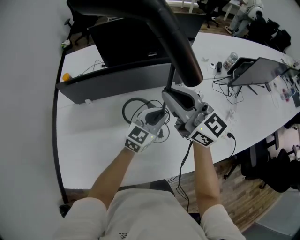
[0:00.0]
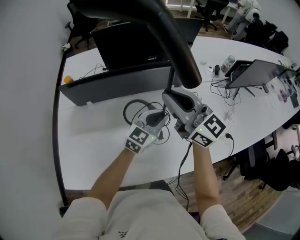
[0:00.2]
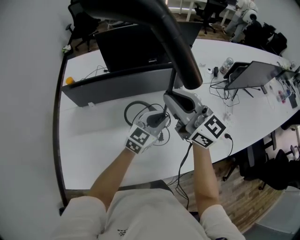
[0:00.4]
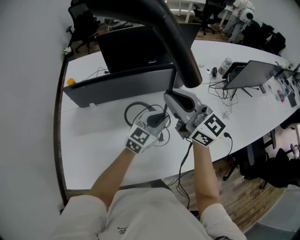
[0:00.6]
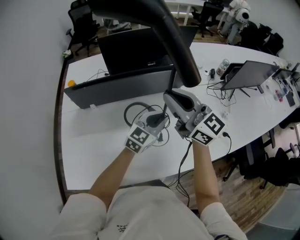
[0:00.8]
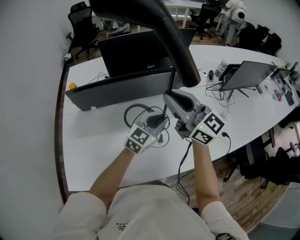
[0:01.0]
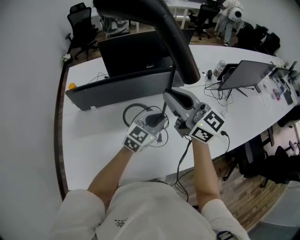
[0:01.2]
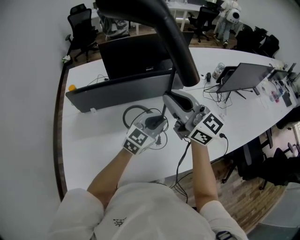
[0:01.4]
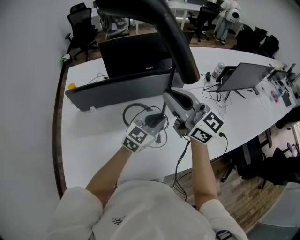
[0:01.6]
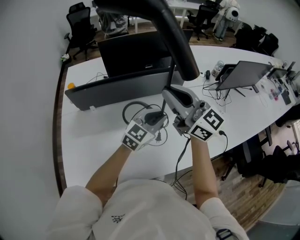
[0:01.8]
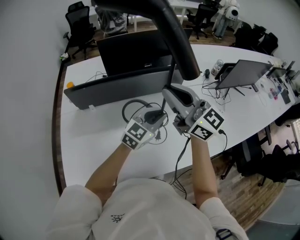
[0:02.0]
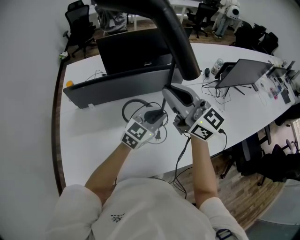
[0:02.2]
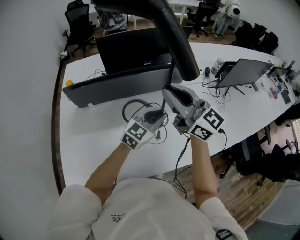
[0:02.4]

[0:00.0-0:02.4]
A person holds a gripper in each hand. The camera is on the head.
0:00.0 to 0:01.2: Both grippers move upward and backward, about 10 cm.
0:01.2 to 0:02.4: The grippers stay close to where they were, moving slightly.

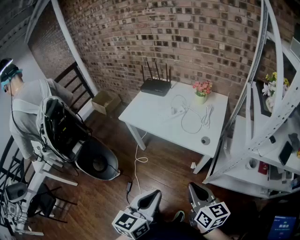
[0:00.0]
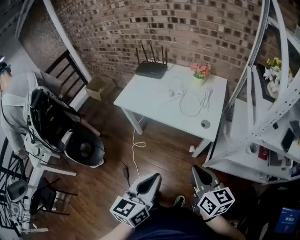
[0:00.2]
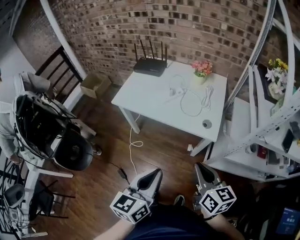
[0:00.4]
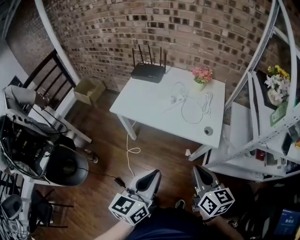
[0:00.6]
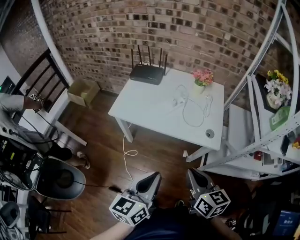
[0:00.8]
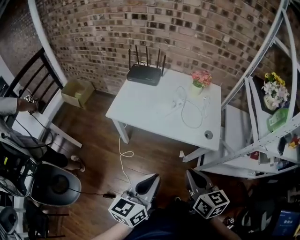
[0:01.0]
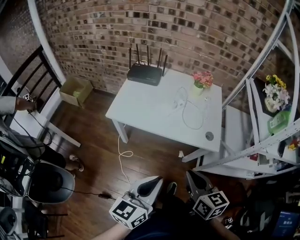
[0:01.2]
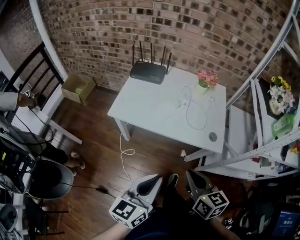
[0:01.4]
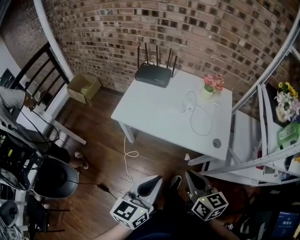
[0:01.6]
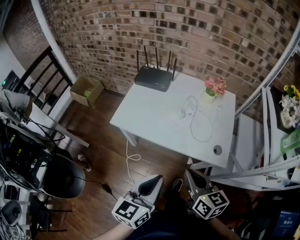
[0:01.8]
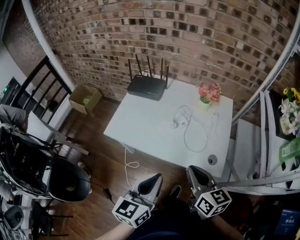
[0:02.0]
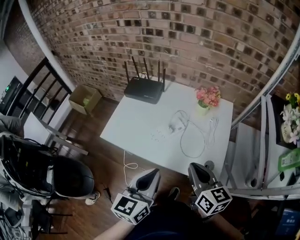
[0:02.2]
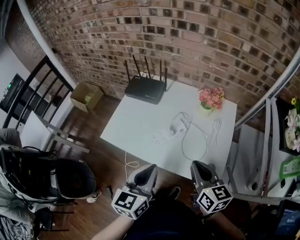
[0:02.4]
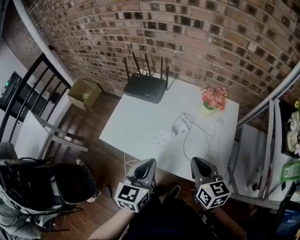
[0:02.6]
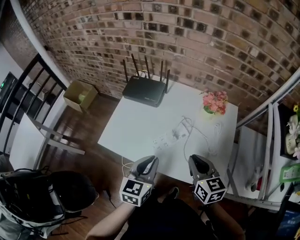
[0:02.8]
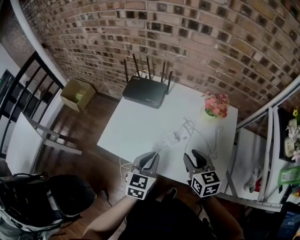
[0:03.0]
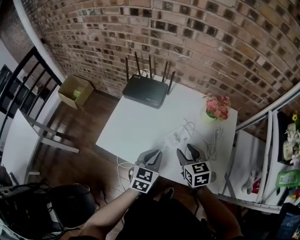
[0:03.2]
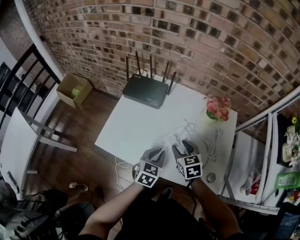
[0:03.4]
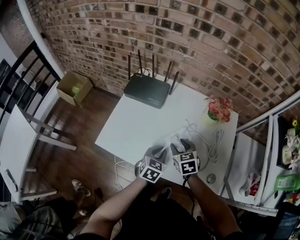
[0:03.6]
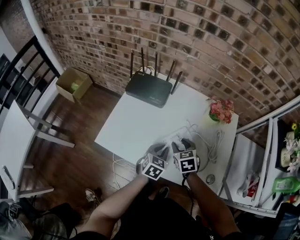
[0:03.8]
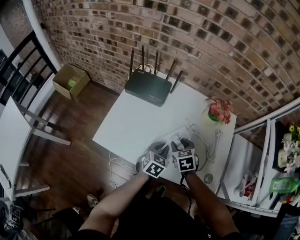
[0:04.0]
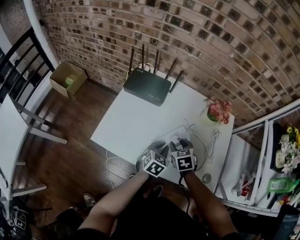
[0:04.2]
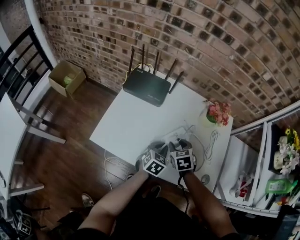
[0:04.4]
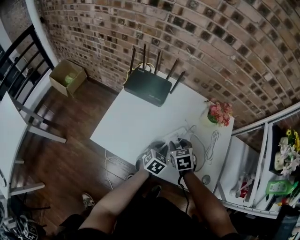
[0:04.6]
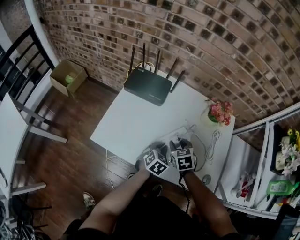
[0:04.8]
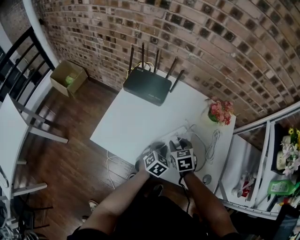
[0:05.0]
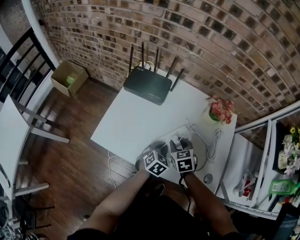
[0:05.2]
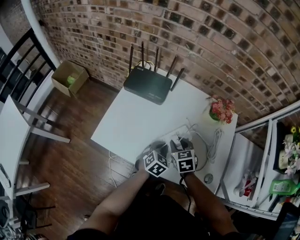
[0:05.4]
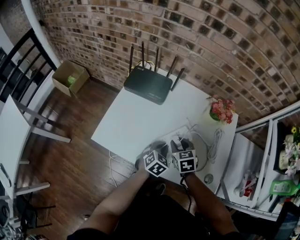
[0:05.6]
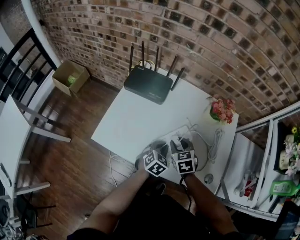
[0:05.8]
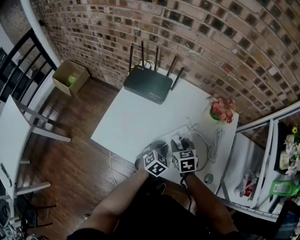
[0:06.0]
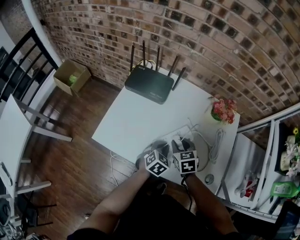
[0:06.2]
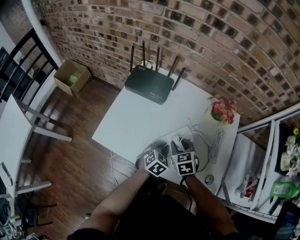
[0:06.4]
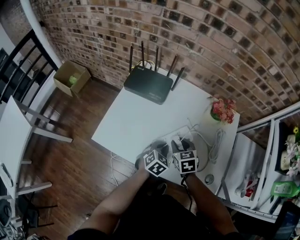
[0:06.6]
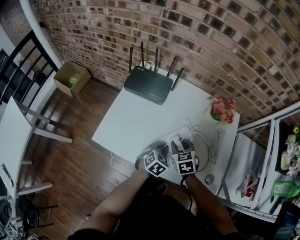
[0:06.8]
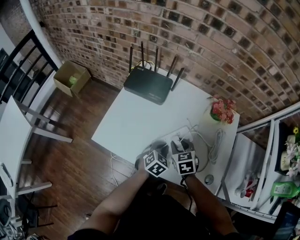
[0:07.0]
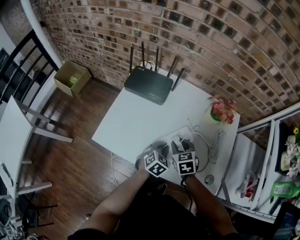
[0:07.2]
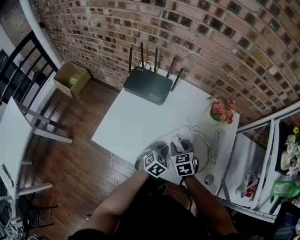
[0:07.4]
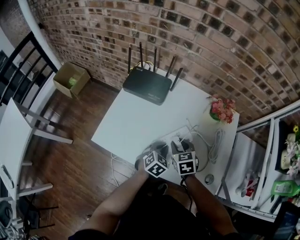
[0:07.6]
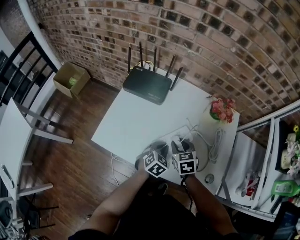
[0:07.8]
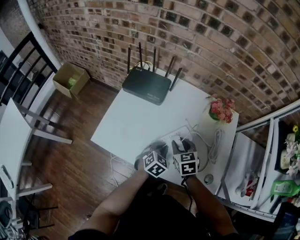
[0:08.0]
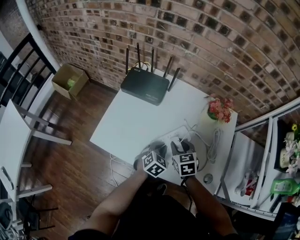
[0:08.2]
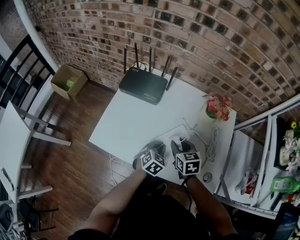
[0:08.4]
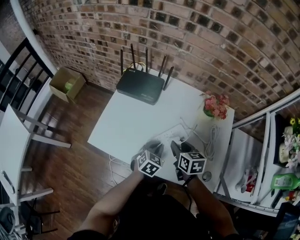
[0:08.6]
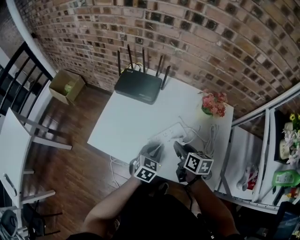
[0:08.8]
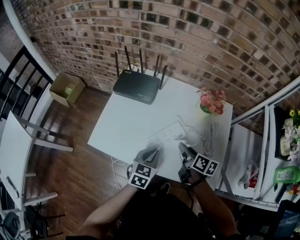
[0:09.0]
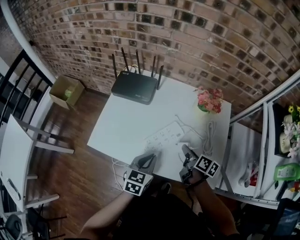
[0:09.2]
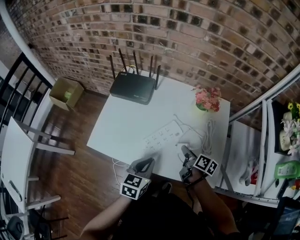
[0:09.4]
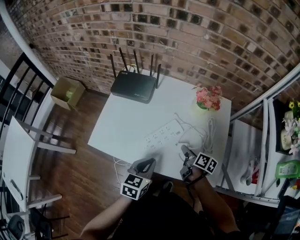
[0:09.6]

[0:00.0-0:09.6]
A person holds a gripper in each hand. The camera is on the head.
0:00.0 to 0:01.6: The right gripper shifts about 25 cm to the left and forward. Meanwhile the left gripper travels forward and to the left by about 25 cm.
0:01.6 to 0:03.2: The right gripper shifts approximately 30 cm forward, turns by some 20 degrees, and opens its fingers. The left gripper heads forward and downward, covering about 35 cm, and changes its angle by approximately 30 degrees.
0:03.2 to 0:04.8: The right gripper is displaced downward by roughly 10 cm, while the left gripper goes about 10 cm downward and forward.
0:04.8 to 0:08.0: The grippers stay close to where they were, moving slightly.
0:08.0 to 0:09.6: The right gripper is displaced to the right by roughly 10 cm, and rolls clockwise, seen from behind, by about 60 degrees, while the left gripper travels upward and backward by approximately 15 cm, and swivels approximately 30 degrees.

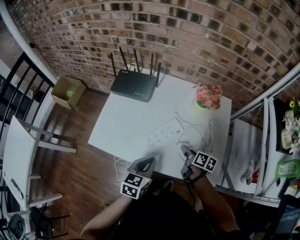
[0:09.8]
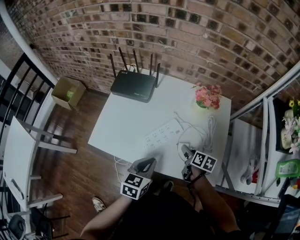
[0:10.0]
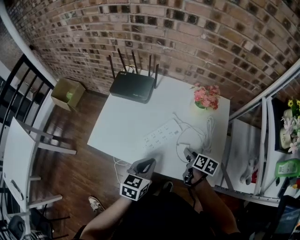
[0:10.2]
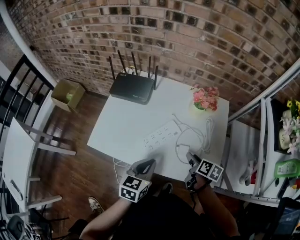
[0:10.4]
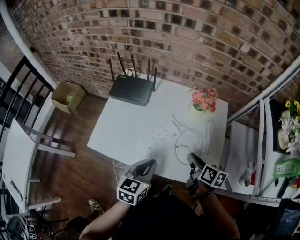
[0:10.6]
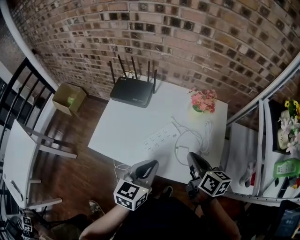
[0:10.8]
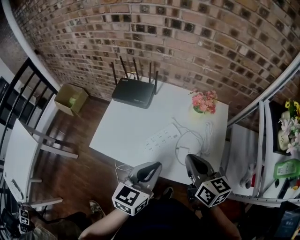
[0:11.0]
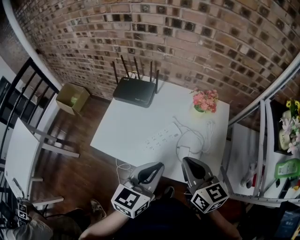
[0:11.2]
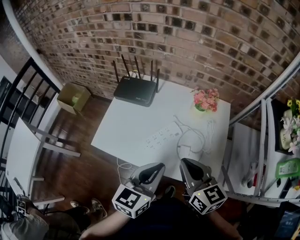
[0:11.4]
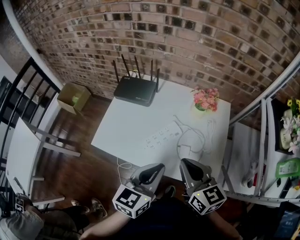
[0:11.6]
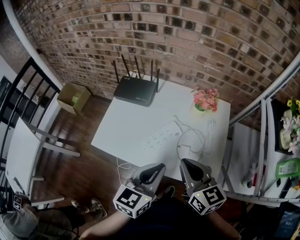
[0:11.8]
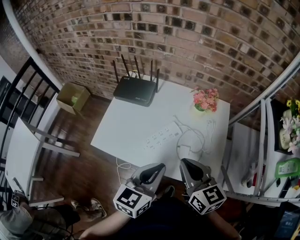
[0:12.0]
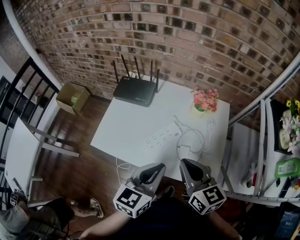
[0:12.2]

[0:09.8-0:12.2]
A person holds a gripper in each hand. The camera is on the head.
0:09.8 to 0:11.0: The right gripper travels upward by some 25 cm, swivels roughly 40 degrees, and closes; the left gripper travels upward by approximately 15 cm.
0:11.0 to 0:12.2: The grippers stay close to where they were, moving slightly.

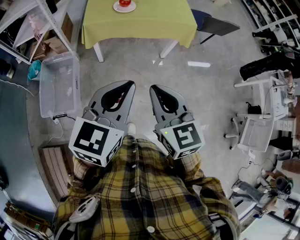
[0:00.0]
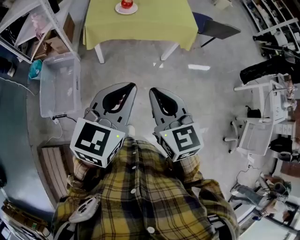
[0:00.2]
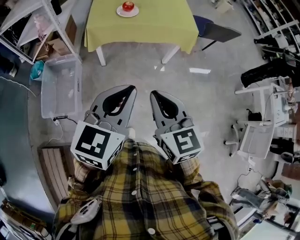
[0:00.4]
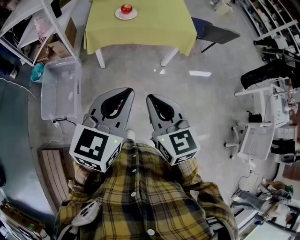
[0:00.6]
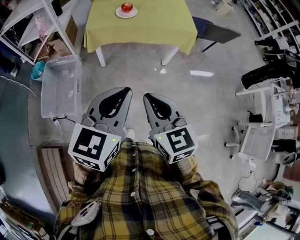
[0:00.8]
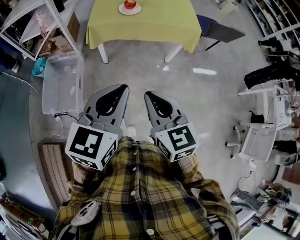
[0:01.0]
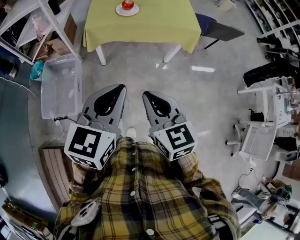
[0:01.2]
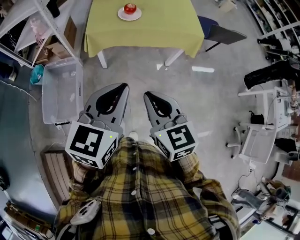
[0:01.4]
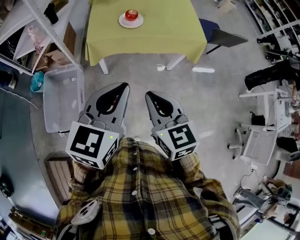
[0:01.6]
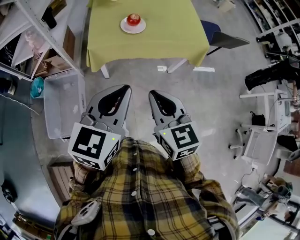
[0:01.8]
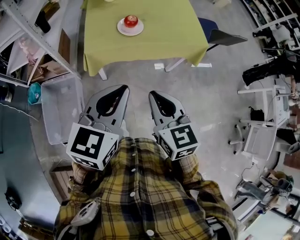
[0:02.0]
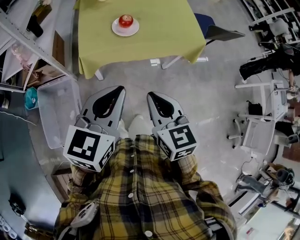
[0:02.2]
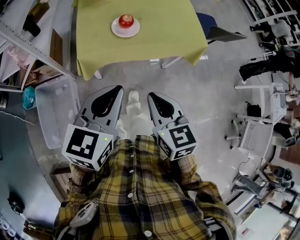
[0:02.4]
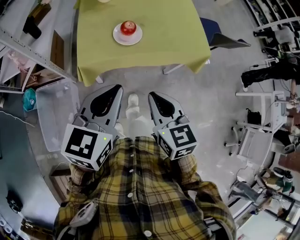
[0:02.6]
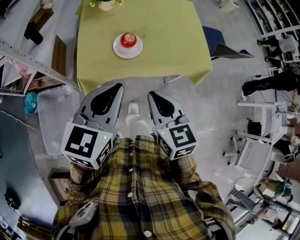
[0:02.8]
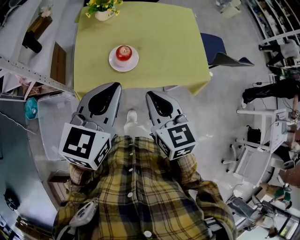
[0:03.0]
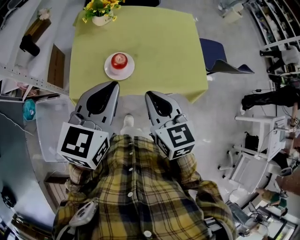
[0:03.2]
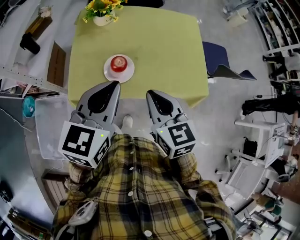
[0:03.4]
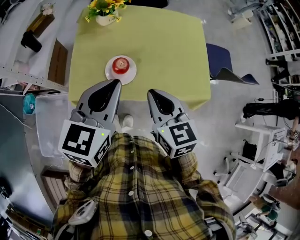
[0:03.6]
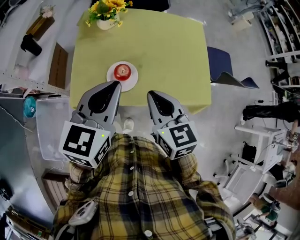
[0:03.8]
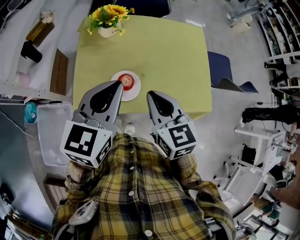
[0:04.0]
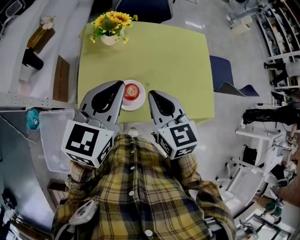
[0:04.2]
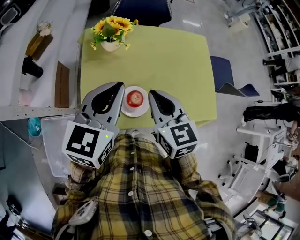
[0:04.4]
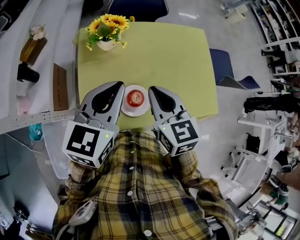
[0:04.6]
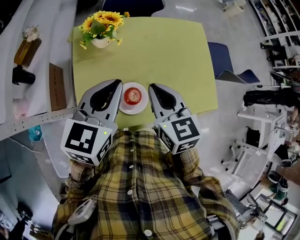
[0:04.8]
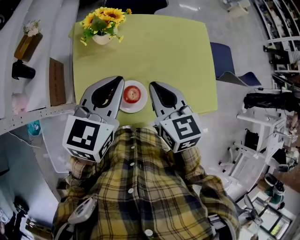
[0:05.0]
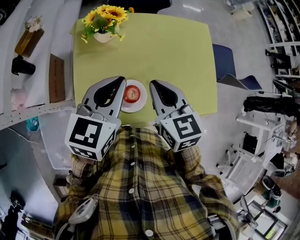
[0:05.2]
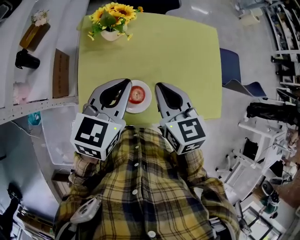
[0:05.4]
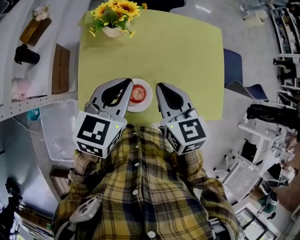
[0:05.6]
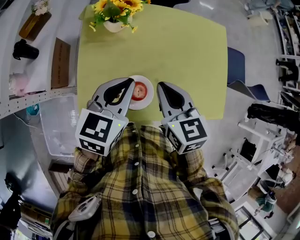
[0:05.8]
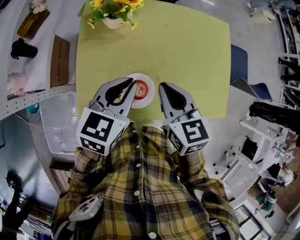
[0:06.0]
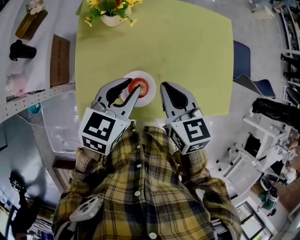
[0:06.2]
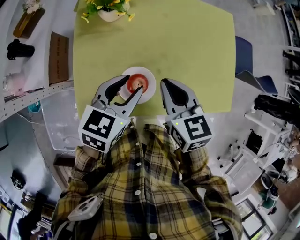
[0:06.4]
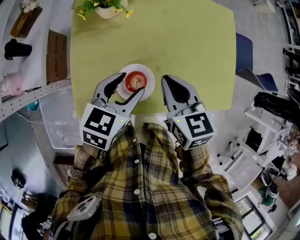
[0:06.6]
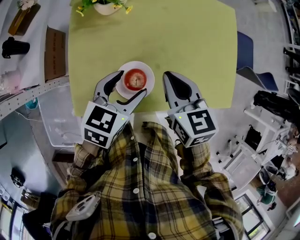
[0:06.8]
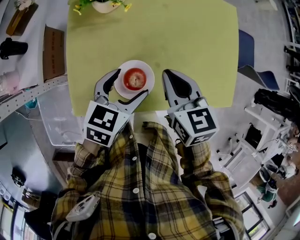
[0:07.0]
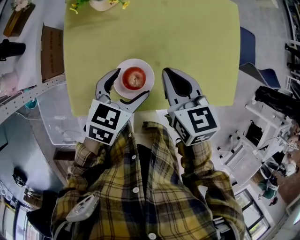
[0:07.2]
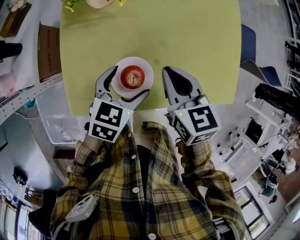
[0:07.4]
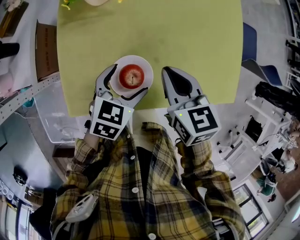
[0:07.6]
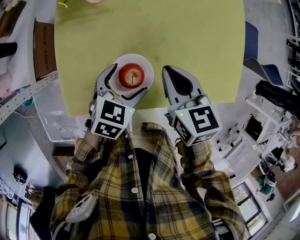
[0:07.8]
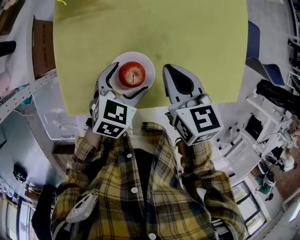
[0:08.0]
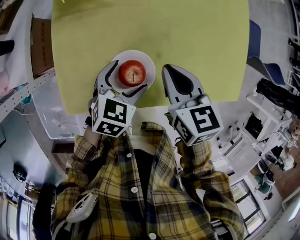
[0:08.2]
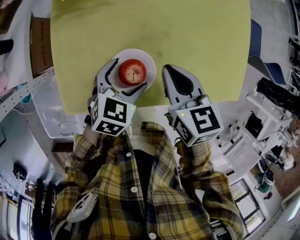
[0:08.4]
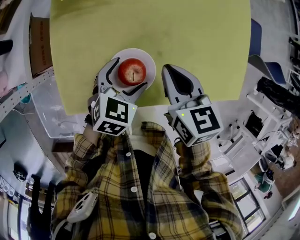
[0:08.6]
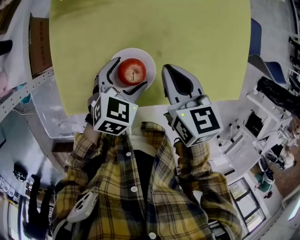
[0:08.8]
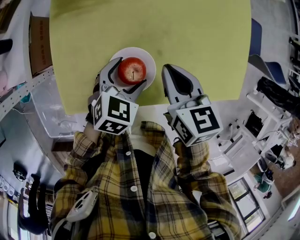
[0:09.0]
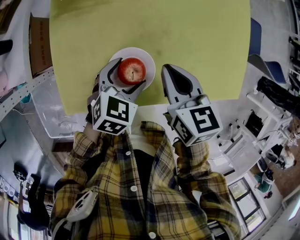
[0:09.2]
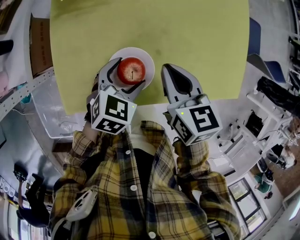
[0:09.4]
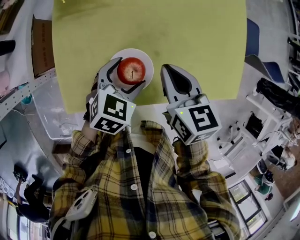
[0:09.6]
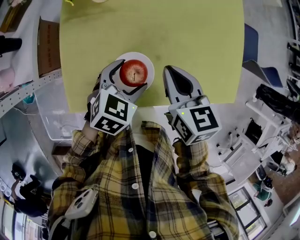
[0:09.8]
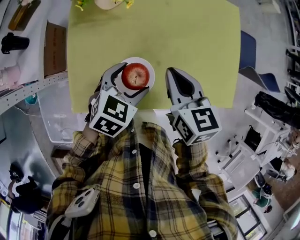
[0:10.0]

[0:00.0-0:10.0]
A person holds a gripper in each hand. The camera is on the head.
0:00.0 to 0:01.4: Both grippers move forward, roughly 5 cm.
0:01.4 to 0:02.8: The grippers both shift forward by approximately 30 cm.
0:02.8 to 0:04.2: The grippers both shift forward by about 25 cm.
0:04.2 to 0:05.8: The right gripper travels forward and downward by approximately 10 cm, while the left gripper shifts roughly 15 cm downward and forward.
0:05.8 to 0:07.2: The left gripper heads downward, covering approximately 15 cm, and opens. Meanwhile the right gripper moves downward, roughly 5 cm.
0:07.2 to 0:08.6: The right gripper shifts by roughly 5 cm; the left gripper shifts roughly 10 cm downward.
0:08.6 to 0:10.0: Both grippers travel together upward, about 5 cm.
